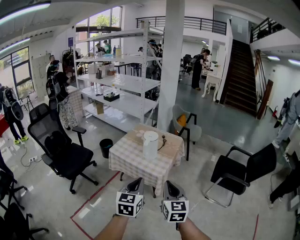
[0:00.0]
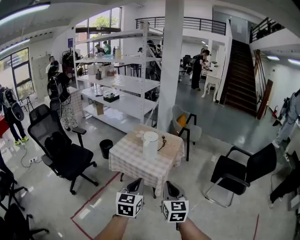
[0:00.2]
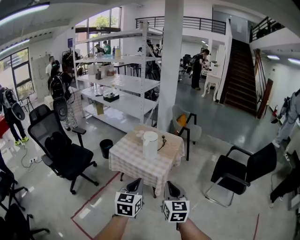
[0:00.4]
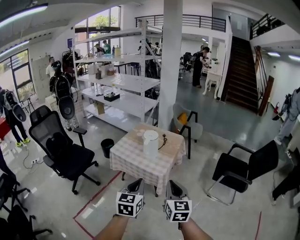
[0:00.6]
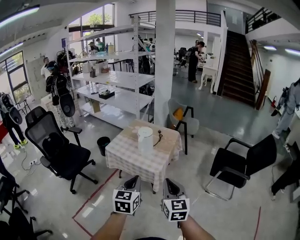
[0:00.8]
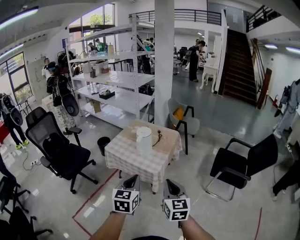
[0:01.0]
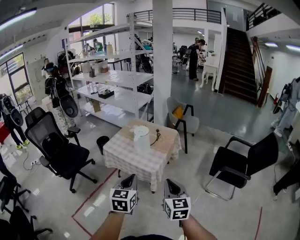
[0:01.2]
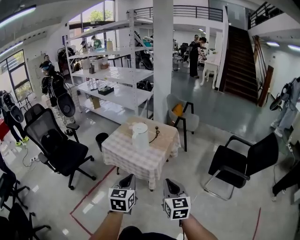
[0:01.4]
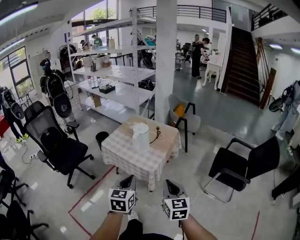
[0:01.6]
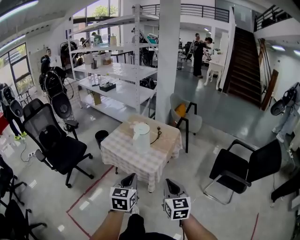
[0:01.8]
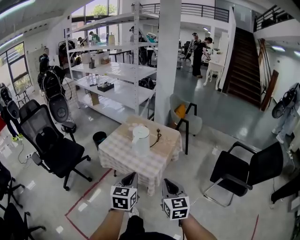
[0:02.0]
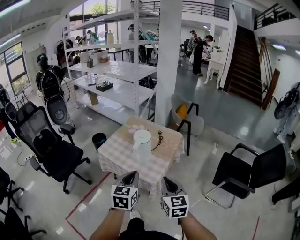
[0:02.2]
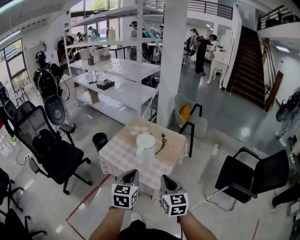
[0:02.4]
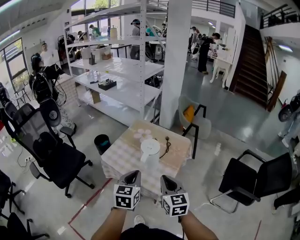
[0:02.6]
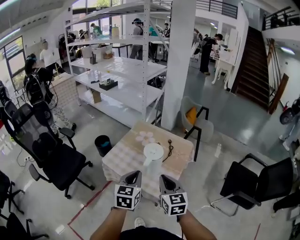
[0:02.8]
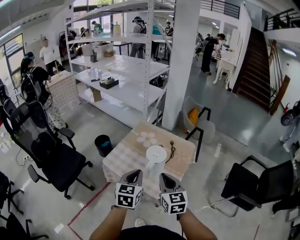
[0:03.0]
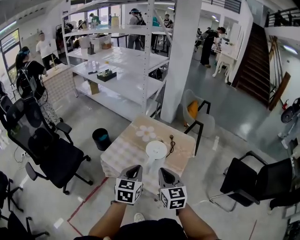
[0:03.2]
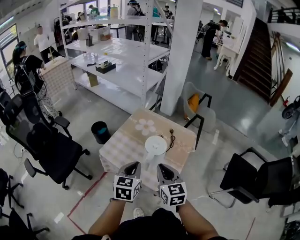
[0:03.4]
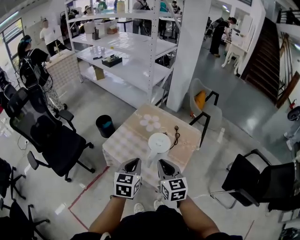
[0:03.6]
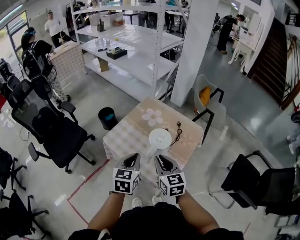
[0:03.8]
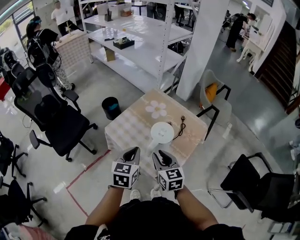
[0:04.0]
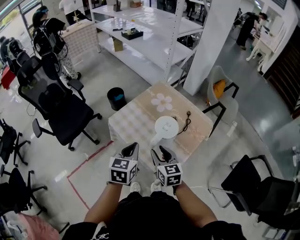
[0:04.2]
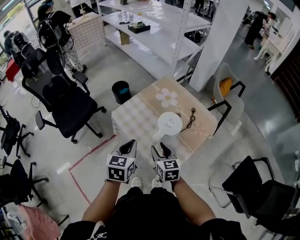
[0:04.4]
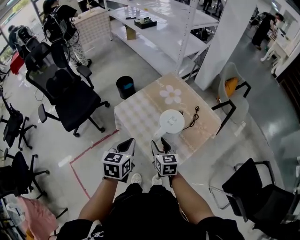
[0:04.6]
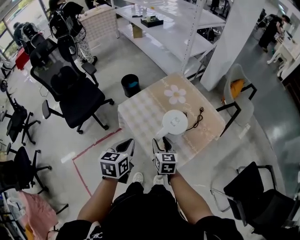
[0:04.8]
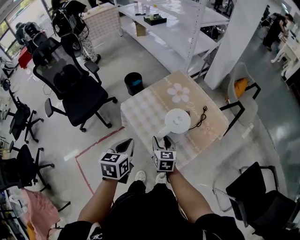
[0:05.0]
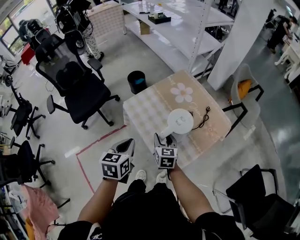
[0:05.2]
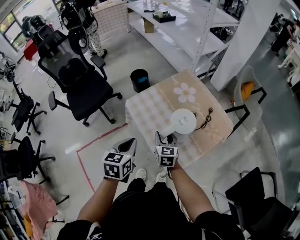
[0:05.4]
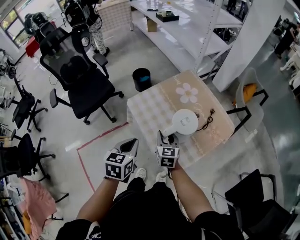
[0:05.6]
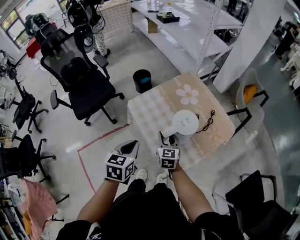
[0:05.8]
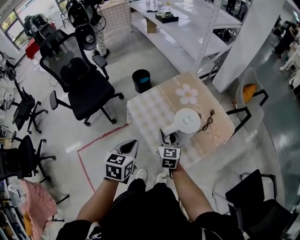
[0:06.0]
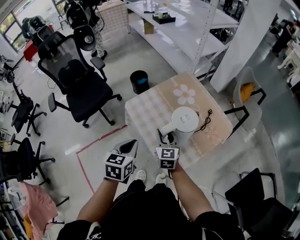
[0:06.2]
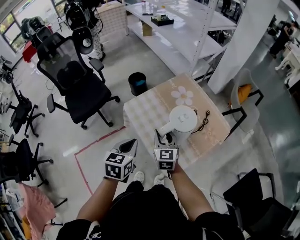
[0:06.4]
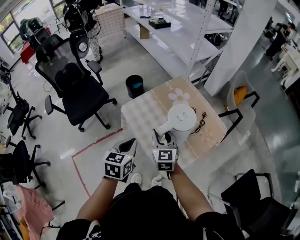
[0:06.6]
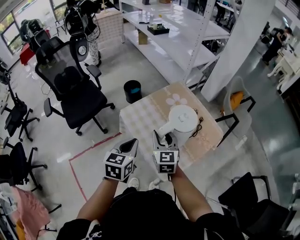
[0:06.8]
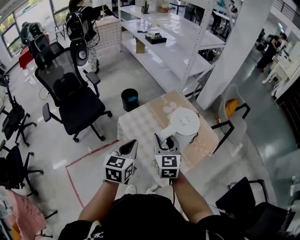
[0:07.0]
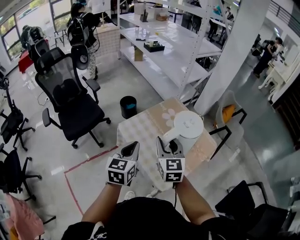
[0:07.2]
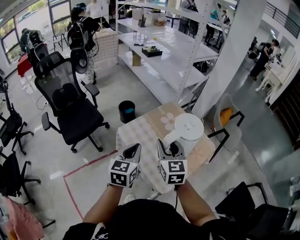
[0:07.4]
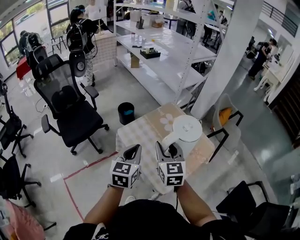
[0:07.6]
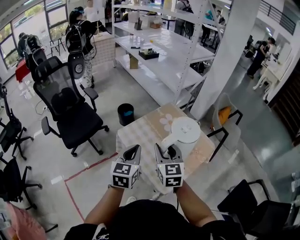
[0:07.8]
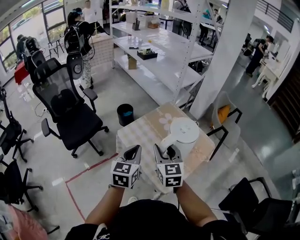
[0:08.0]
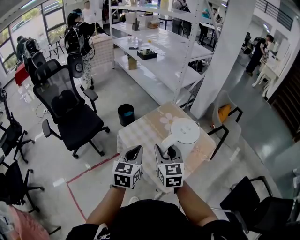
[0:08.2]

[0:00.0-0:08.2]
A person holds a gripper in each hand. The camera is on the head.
0:00.0 to 0:01.6: Both grippers travel together to the right and downward, roughly 10 cm.
0:01.6 to 0:03.2: The right gripper goes about 40 cm forward and to the left, while the left gripper heads forward, covering roughly 35 cm.
0:03.2 to 0:05.0: The left gripper heads downward and to the left, covering roughly 10 cm, and changes its angle by some 30 degrees; the right gripper travels downward and forward by approximately 20 cm, changes its angle by about 20 degrees, and opens up.
0:05.0 to 0:06.6: The right gripper is displaced upward by approximately 10 cm.
0:06.6 to 0:08.2: The left gripper shifts some 10 cm upward. Meanwhile the right gripper shifts approximately 10 cm upward.

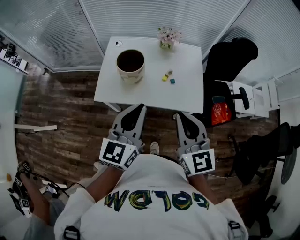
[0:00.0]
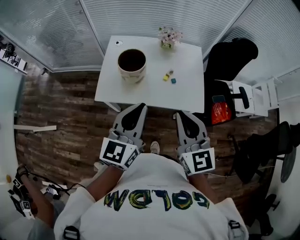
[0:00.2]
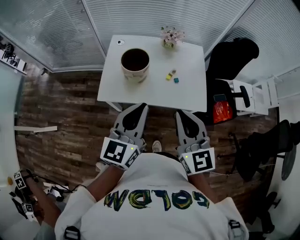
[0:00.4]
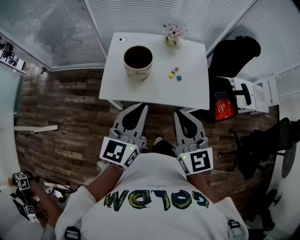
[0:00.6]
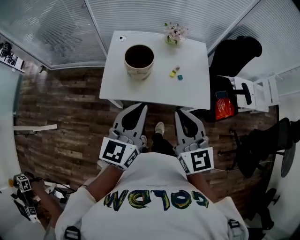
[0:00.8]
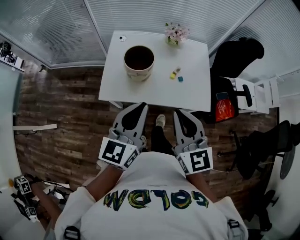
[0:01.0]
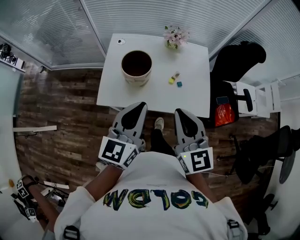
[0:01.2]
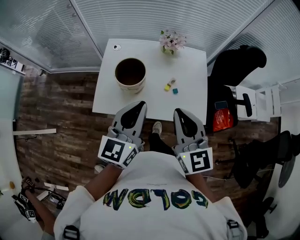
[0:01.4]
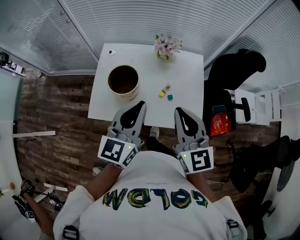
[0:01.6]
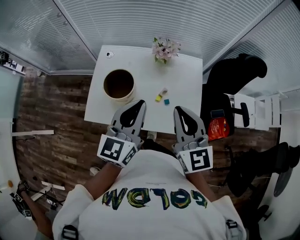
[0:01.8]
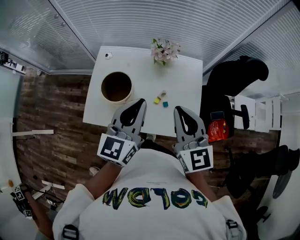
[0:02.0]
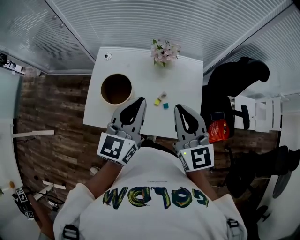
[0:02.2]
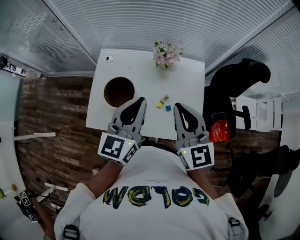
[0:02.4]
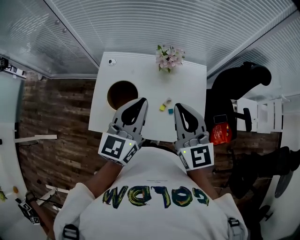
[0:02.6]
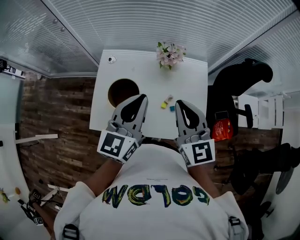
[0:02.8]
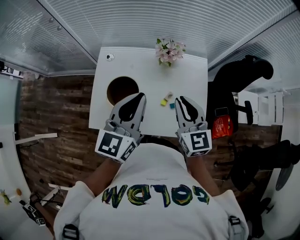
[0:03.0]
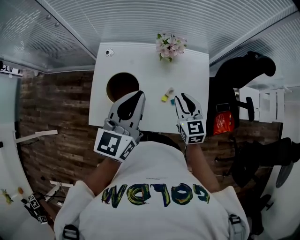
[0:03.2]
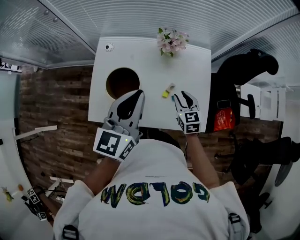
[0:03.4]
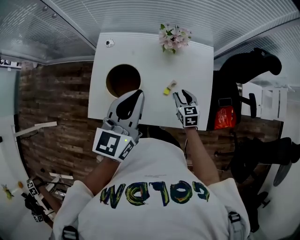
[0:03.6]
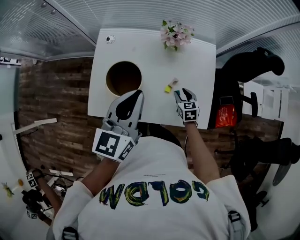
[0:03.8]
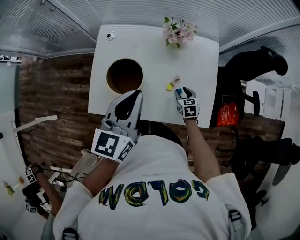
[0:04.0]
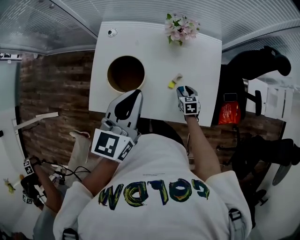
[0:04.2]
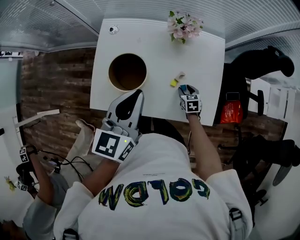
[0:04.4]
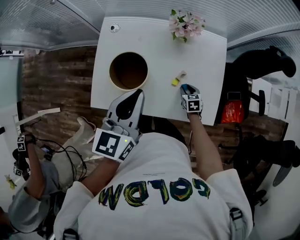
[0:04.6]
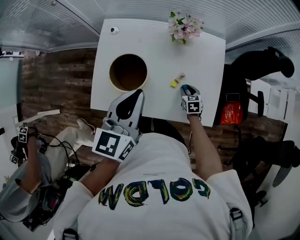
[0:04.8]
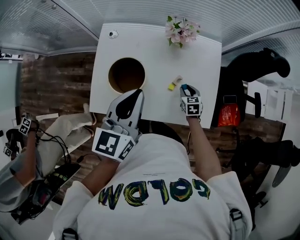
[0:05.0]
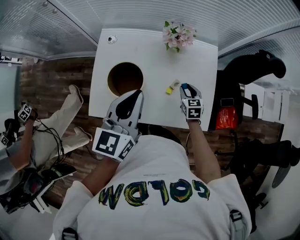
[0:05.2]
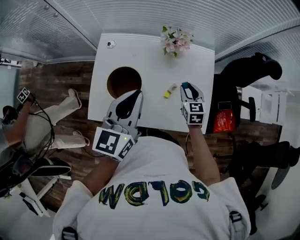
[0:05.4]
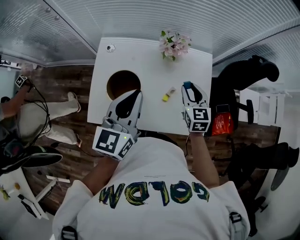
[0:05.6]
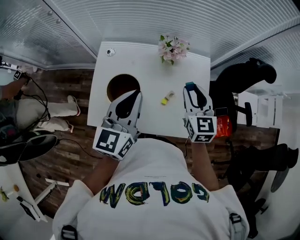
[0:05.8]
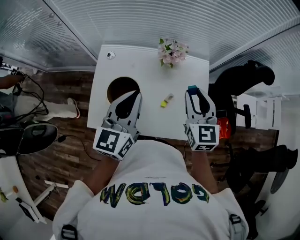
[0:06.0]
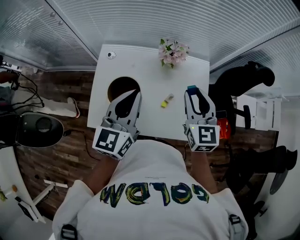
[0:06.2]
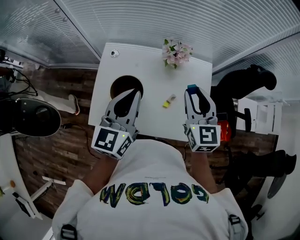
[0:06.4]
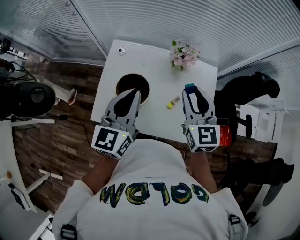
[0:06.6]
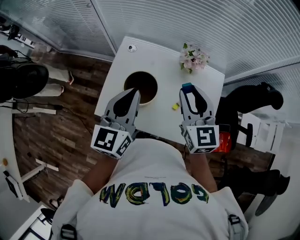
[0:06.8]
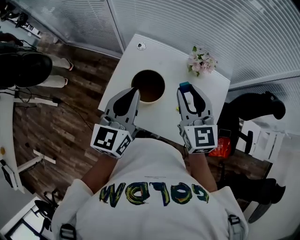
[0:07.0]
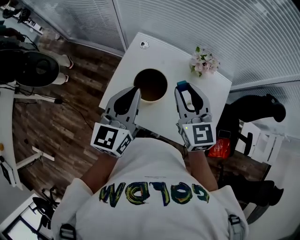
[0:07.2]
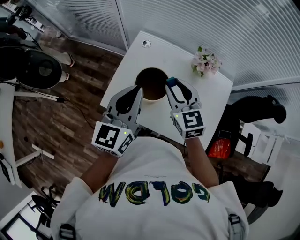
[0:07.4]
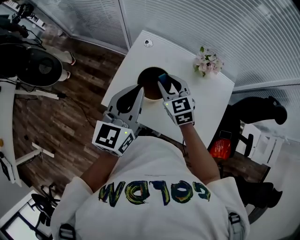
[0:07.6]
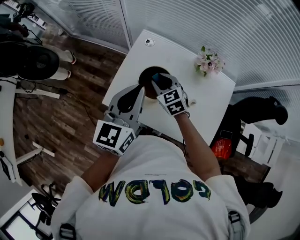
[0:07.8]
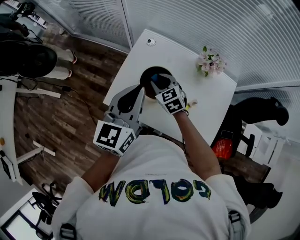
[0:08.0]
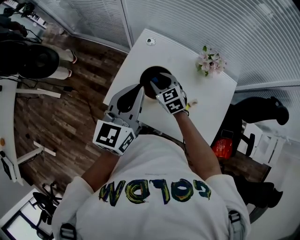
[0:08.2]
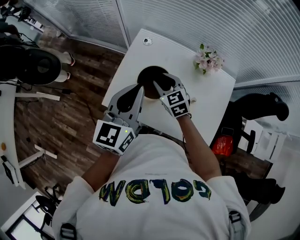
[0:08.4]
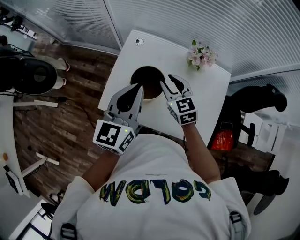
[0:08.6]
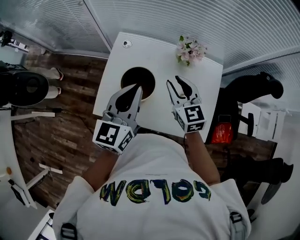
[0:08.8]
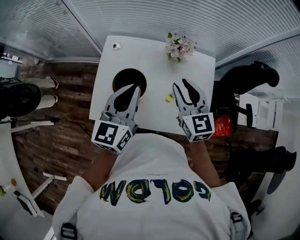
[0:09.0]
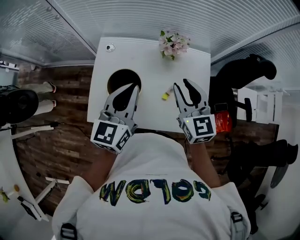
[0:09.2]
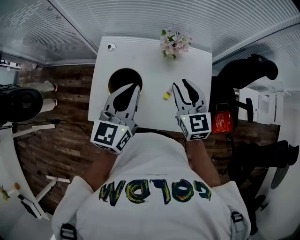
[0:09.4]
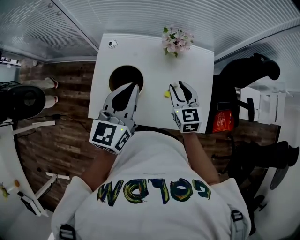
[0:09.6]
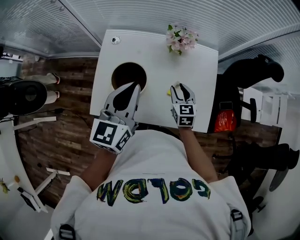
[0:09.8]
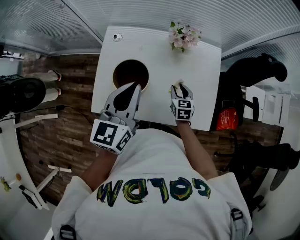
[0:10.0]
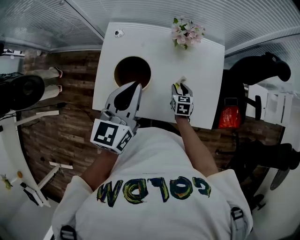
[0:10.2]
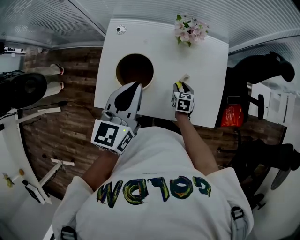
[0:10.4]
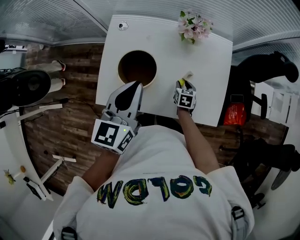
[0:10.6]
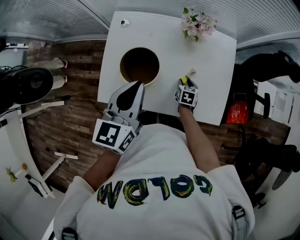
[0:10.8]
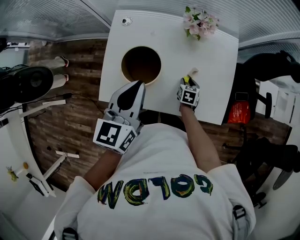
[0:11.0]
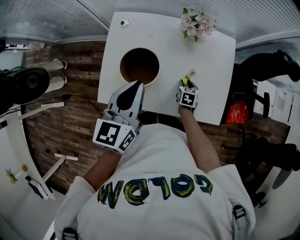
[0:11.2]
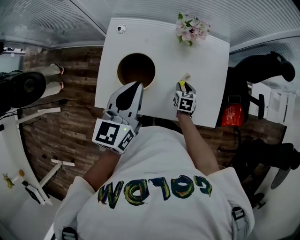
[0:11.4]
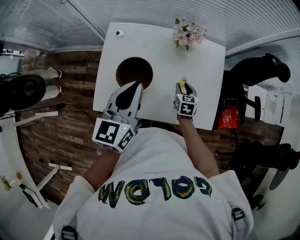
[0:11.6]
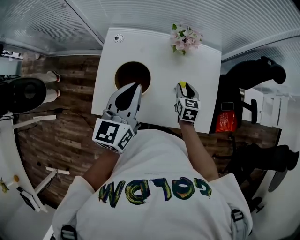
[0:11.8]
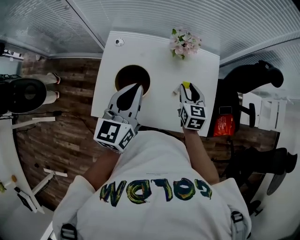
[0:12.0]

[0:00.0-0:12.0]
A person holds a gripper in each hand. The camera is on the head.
0:00.0 to 0:01.6: The grippers both shift forward by some 15 cm.
0:01.6 to 0:03.0: The left gripper is displaced forward by approximately 15 cm; the right gripper moves forward and downward, some 15 cm.
0:03.0 to 0:04.4: The right gripper is displaced downward by roughly 40 cm, tips its fingers downward by some 40 degrees, and opens its fingers, while the left gripper travels downward by roughly 5 cm.
0:04.4 to 0:06.0: The left gripper shifts approximately 5 cm upward. Meanwhile the right gripper is displaced upward by about 40 cm, and angles its fingers upward, by approximately 40 degrees.
0:06.0 to 0:07.6: The left gripper ends up approximately 15 cm from where it was, while the right gripper changes place by approximately 25 cm, and rotates some 40 degrees.
0:07.6 to 0:09.0: The left gripper goes about 10 cm to the right; the right gripper moves to the right and upward, approximately 20 cm, and rotates approximately 30 degrees.
0:09.0 to 0:10.4: The right gripper moves downward, roughly 35 cm, and points its fingers about 30 degrees further downward.
0:10.4 to 0:12.0: The right gripper heads upward, covering about 20 cm, and swivels some 20 degrees.

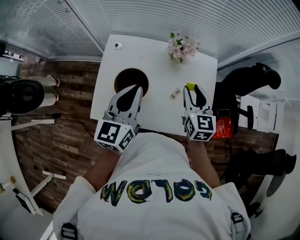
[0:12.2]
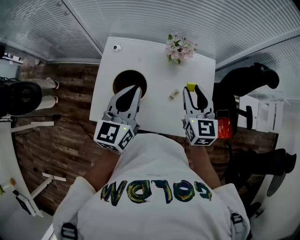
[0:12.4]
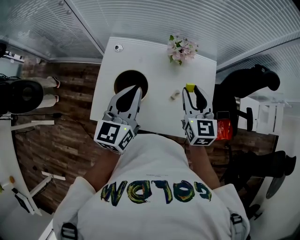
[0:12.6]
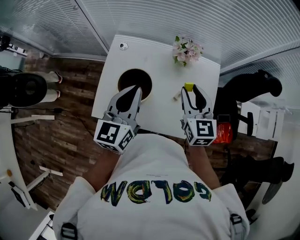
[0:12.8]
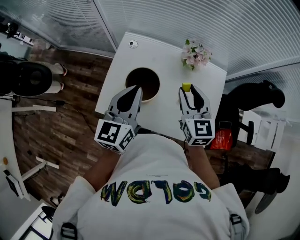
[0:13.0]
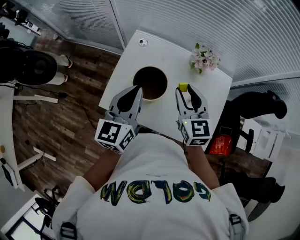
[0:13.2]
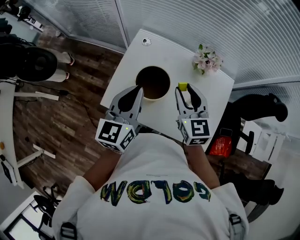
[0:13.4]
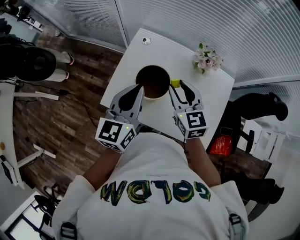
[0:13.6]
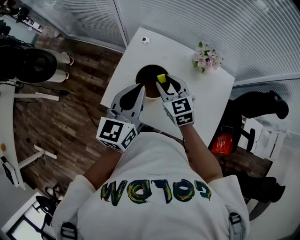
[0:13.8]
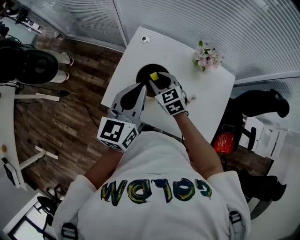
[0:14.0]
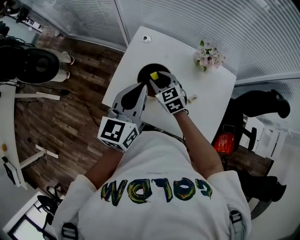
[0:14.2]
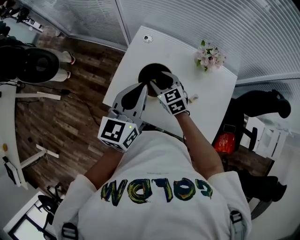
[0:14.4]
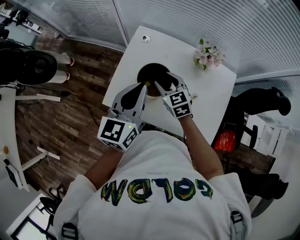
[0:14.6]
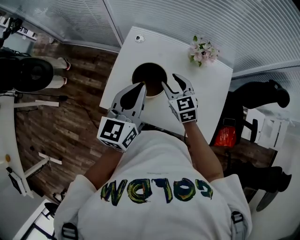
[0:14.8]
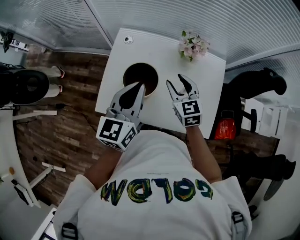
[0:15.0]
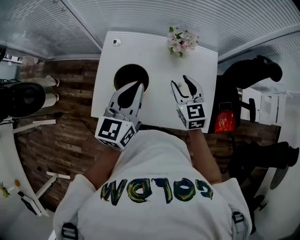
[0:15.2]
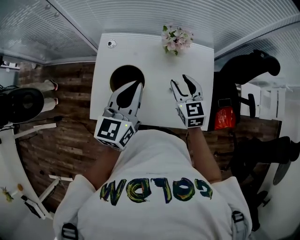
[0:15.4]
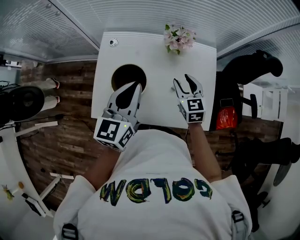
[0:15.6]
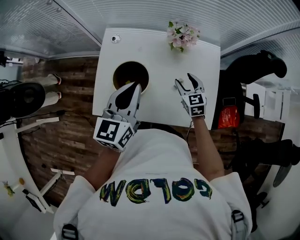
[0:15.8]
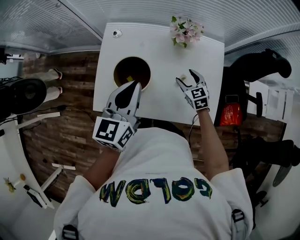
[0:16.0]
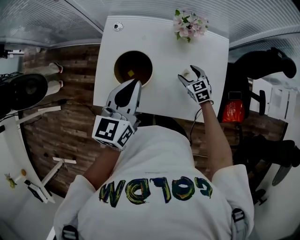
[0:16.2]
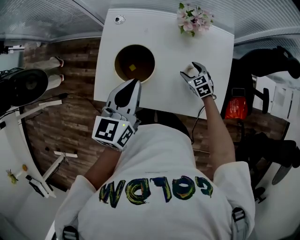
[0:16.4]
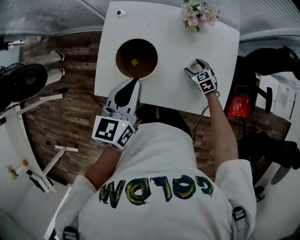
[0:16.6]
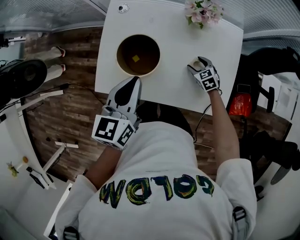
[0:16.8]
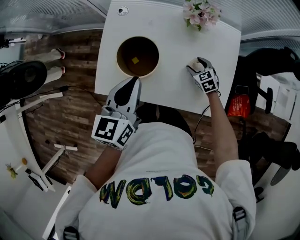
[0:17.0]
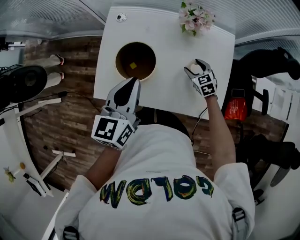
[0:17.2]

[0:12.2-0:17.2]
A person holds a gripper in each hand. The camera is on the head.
0:12.2 to 0:13.8: The left gripper shifts some 10 cm to the left; the right gripper is displaced to the left by approximately 20 cm, and turns by roughly 40 degrees.
0:13.8 to 0:15.6: The right gripper goes up and down, some 5 cm each way, reversing 2 times, and turns by roughly 30 degrees. Meanwhile the left gripper moves roughly 10 cm.
0:15.6 to 0:17.2: The left gripper moves downward, roughly 5 cm; the right gripper shifts about 20 cm downward, and rotates approximately 20 degrees.
